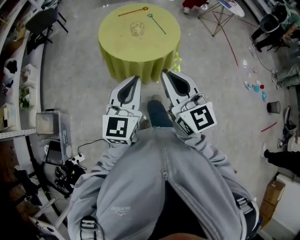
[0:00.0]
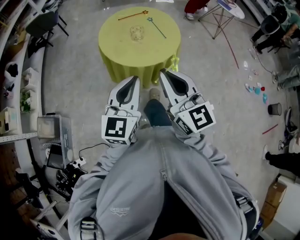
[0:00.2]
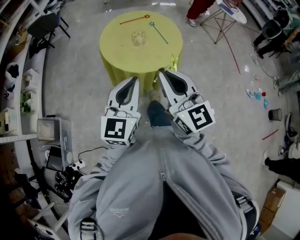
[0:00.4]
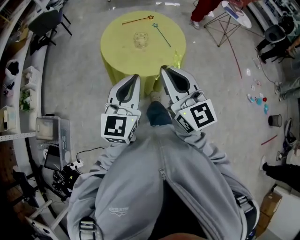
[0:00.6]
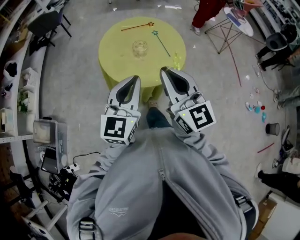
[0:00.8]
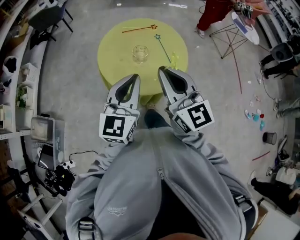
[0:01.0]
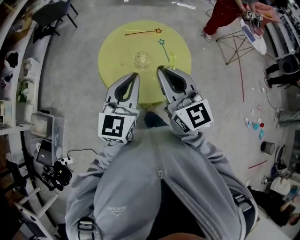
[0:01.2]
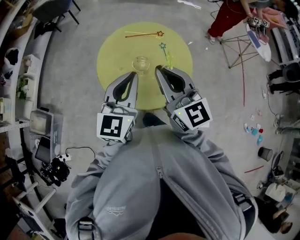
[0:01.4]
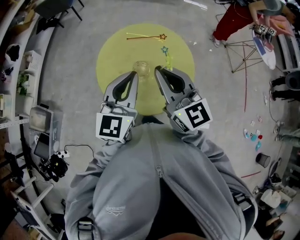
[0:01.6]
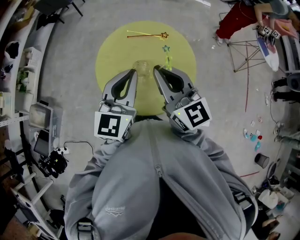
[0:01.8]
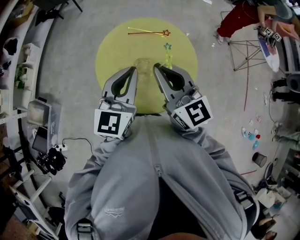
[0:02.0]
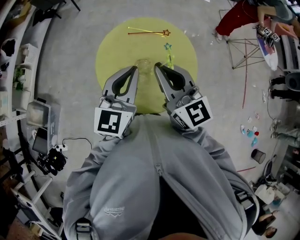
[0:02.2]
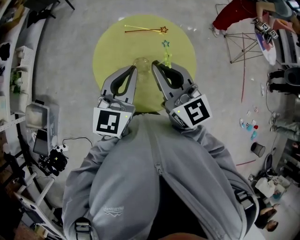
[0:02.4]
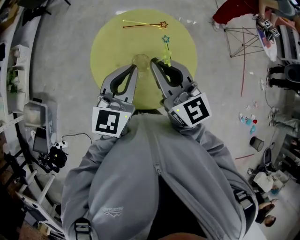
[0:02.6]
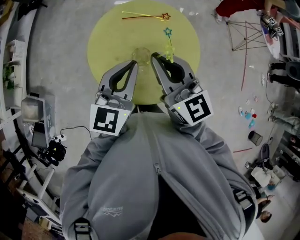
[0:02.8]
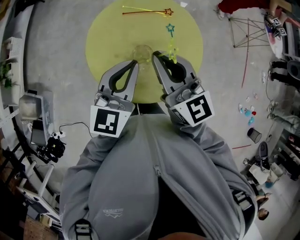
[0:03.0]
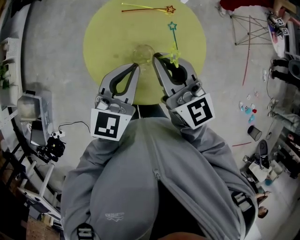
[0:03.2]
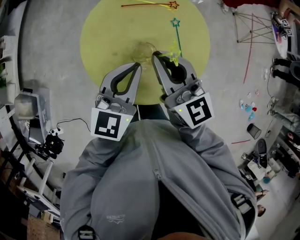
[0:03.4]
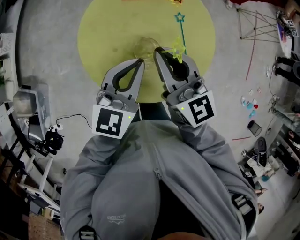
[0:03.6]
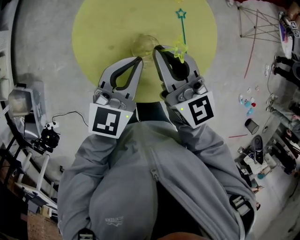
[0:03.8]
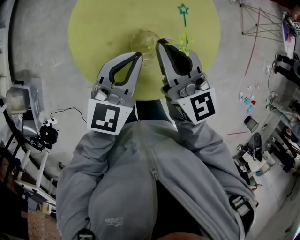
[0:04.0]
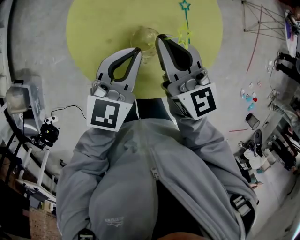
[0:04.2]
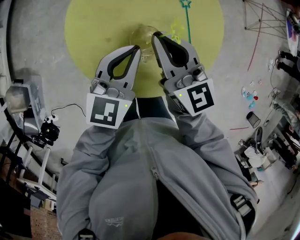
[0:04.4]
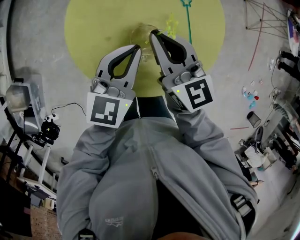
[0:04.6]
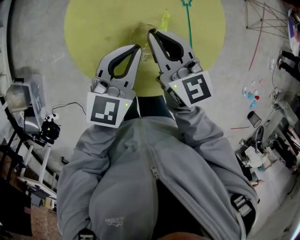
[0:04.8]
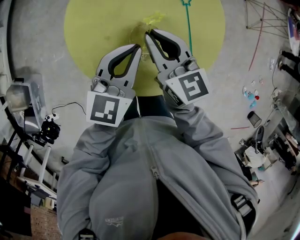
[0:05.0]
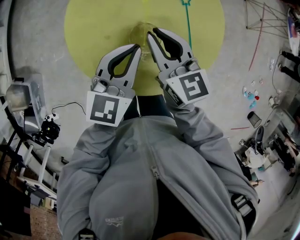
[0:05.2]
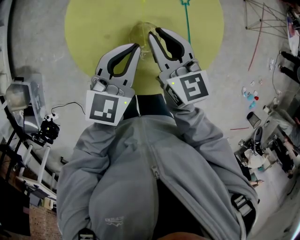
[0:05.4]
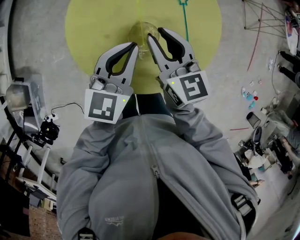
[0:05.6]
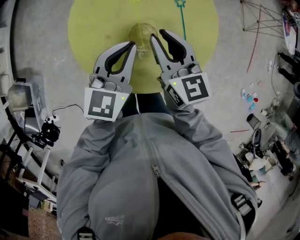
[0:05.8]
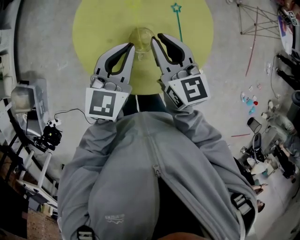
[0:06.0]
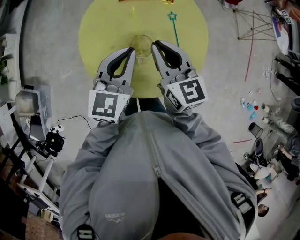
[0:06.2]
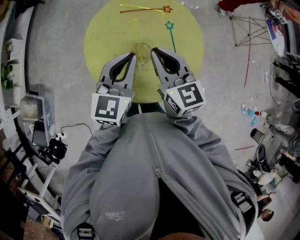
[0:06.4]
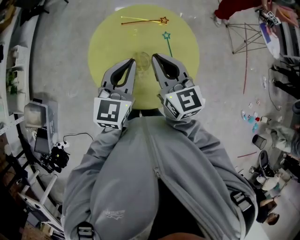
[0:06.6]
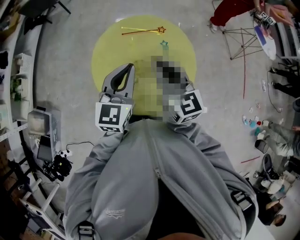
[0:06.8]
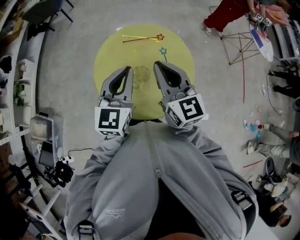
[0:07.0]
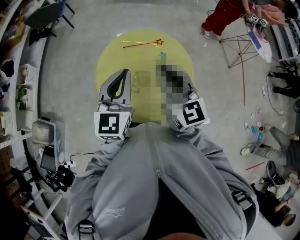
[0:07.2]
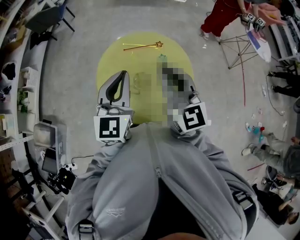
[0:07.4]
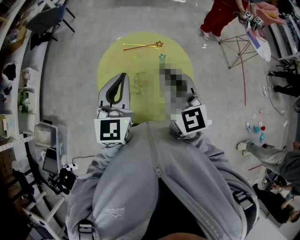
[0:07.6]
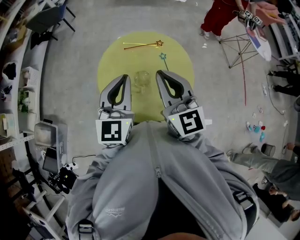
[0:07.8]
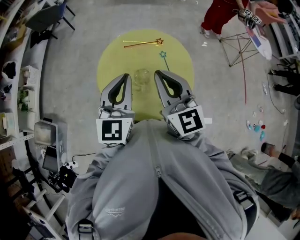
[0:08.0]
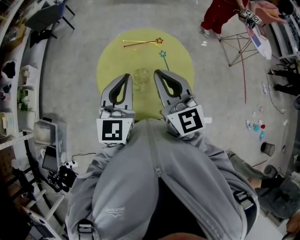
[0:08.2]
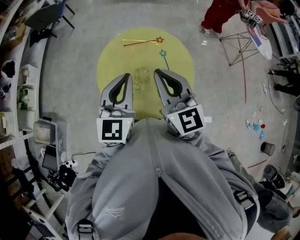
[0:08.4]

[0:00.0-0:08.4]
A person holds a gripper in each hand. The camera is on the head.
0:00.0 to 0:01.4: The pair of grippers is taken forward, approximately 40 cm.
0:01.4 to 0:02.8: Both grippers travel together forward and downward, approximately 15 cm.
0:02.8 to 0:04.2: The grippers both shift downward by approximately 20 cm.
0:04.2 to 0:05.6: The right gripper ends up about 5 cm from where it was.
0:05.6 to 0:07.0: Both grippers move upward, about 25 cm.
0:07.0 to 0:08.4: The right gripper moves some 5 cm. The left gripper shifts by roughly 5 cm.

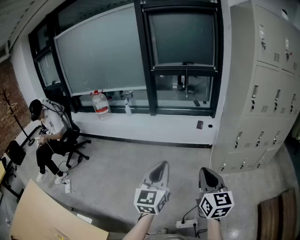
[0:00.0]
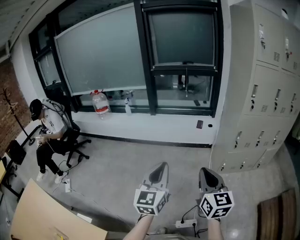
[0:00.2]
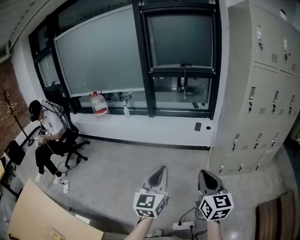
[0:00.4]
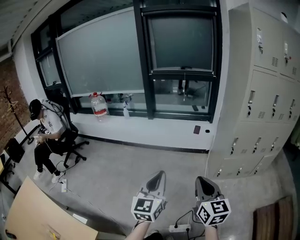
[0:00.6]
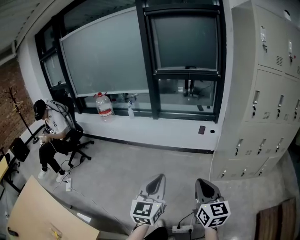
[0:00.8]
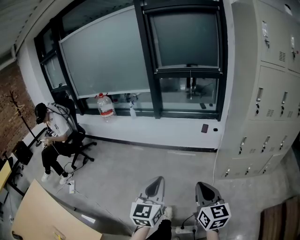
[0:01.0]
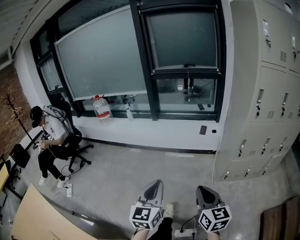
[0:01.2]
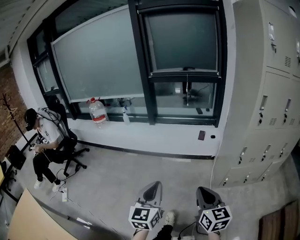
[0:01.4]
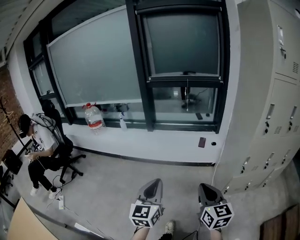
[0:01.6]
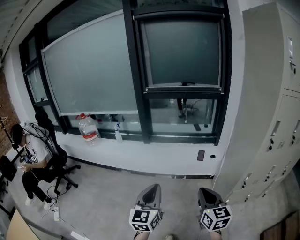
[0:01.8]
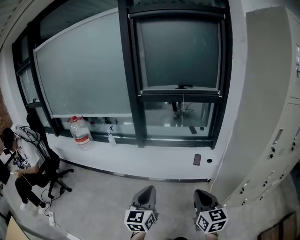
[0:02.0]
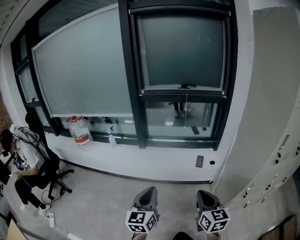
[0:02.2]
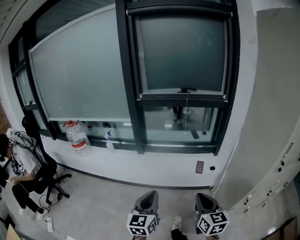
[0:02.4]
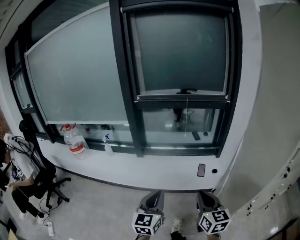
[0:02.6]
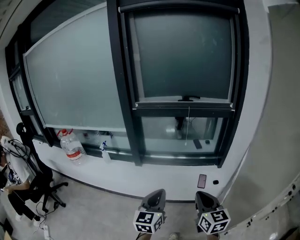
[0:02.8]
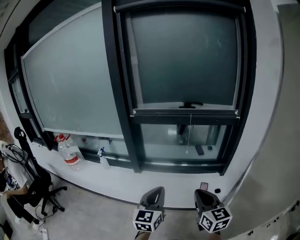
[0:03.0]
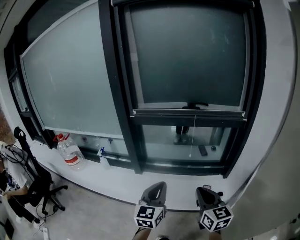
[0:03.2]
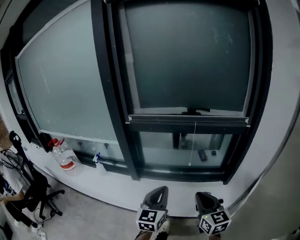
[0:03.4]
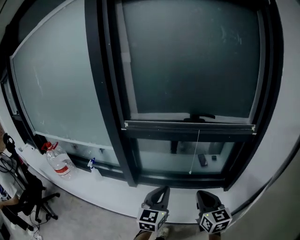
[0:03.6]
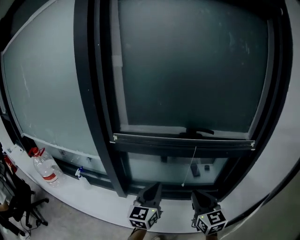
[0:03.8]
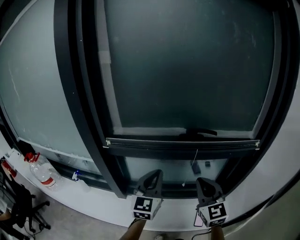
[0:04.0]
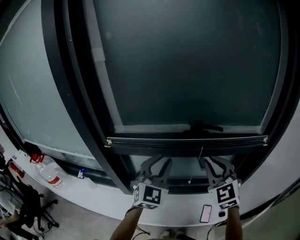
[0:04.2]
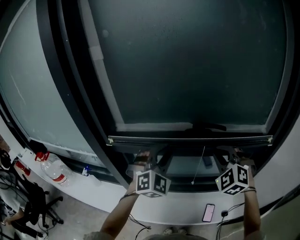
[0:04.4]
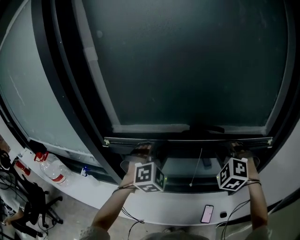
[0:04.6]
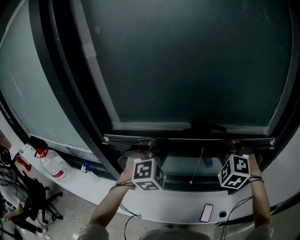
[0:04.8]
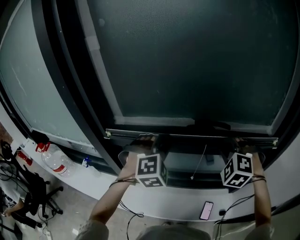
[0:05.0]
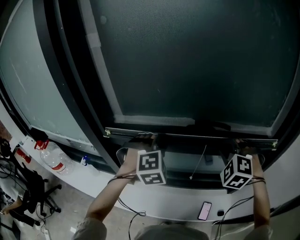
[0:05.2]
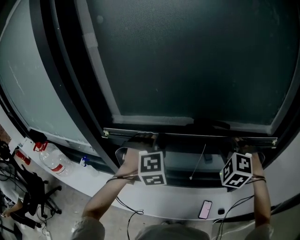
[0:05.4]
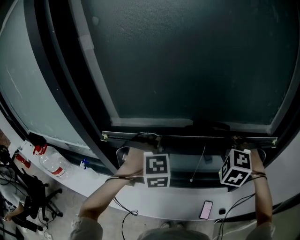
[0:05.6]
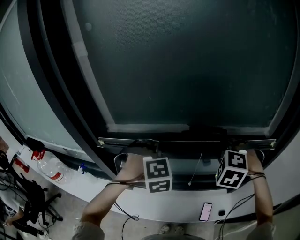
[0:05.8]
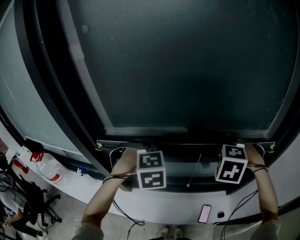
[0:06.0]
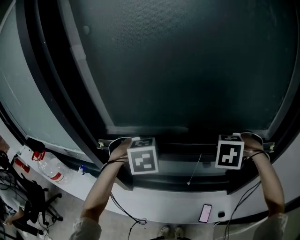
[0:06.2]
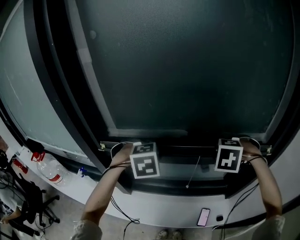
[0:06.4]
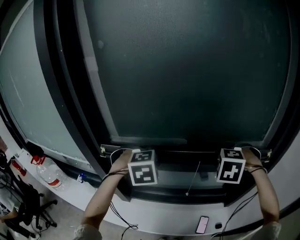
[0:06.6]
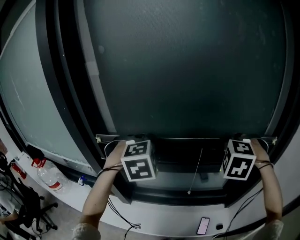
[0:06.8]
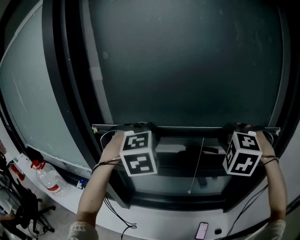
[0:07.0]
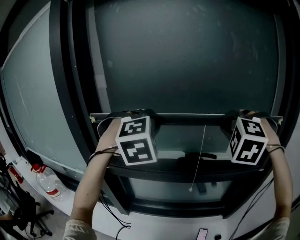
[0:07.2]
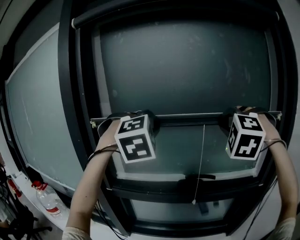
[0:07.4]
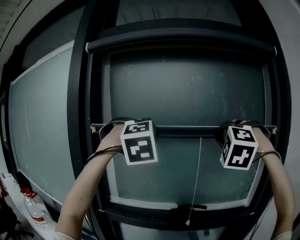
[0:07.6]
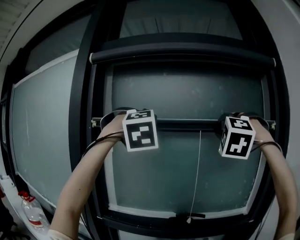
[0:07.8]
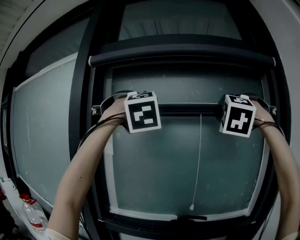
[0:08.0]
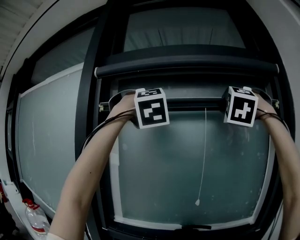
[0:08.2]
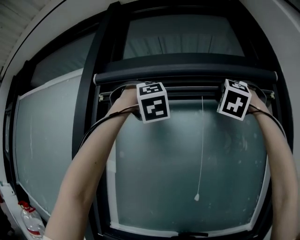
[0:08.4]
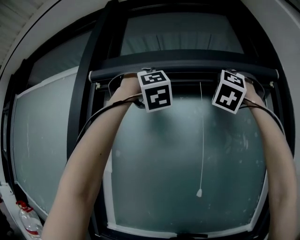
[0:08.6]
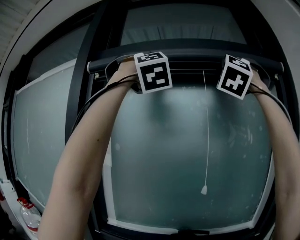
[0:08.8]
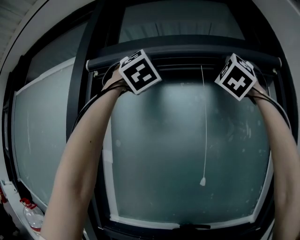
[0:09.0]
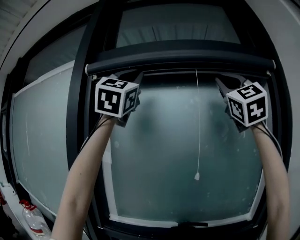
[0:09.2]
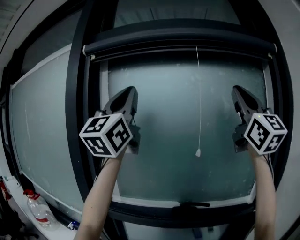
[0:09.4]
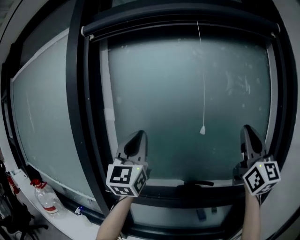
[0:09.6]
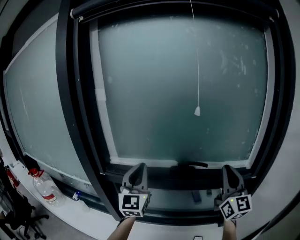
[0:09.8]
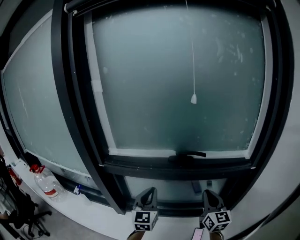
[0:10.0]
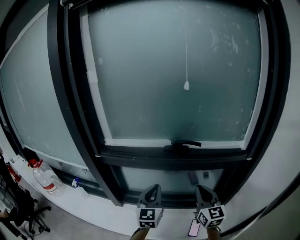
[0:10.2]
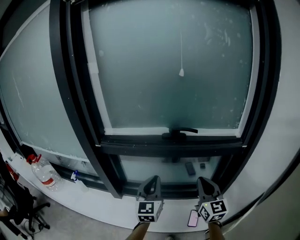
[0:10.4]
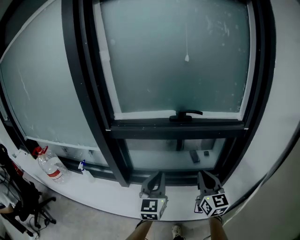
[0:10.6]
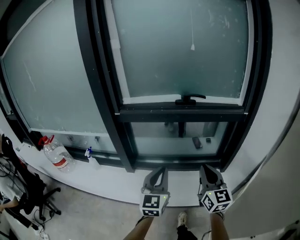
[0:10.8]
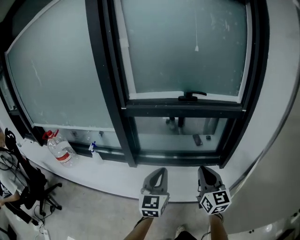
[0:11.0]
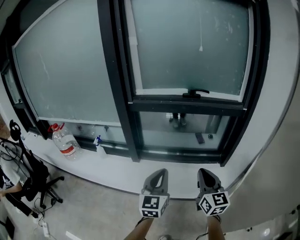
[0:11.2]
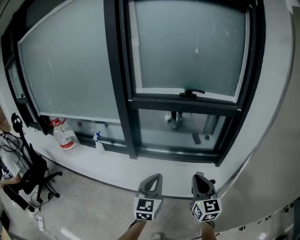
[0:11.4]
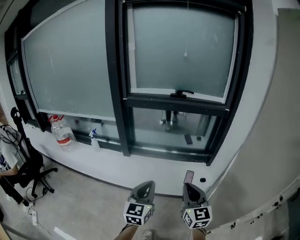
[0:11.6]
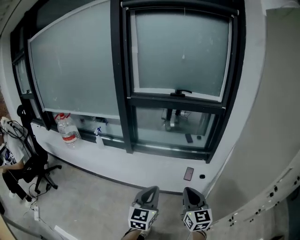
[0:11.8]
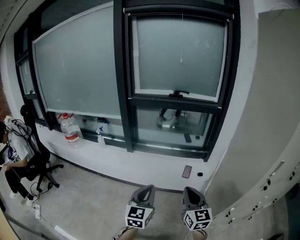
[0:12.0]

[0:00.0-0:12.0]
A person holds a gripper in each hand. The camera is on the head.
0:00.0 to 0:01.6: Both grippers travel together forward, roughly 20 cm.
0:01.6 to 0:03.0: The two grippers travel together, forward, some 50 cm.
0:03.0 to 0:04.4: Both grippers are carried forward, approximately 50 cm. The right gripper twists about 60 degrees counterclockwise, seen from behind; the left gripper rotates around the line of its fingers by roughly 60 degrees, clockwise from behind, and opens up.
0:04.4 to 0:06.0: The left gripper moves roughly 5 cm, and angles its fingers downward, by about 40 degrees. Meanwhile the right gripper tips its fingers downward by approximately 40 degrees.
0:06.0 to 0:07.6: Both grippers move upward, approximately 40 cm. The right gripper tilts its fingers approximately 50 degrees upward, while the left gripper tips its fingers upward by some 40 degrees.
0:07.6 to 0:09.0: Both grippers move upward, some 30 cm. The right gripper angles its fingers upward, by some 40 degrees; the left gripper angles its fingers upward, by roughly 40 degrees.
0:09.0 to 0:10.4: The grippers both shift downward by about 70 cm. The right gripper rolls clockwise, seen from behind, by about 70 degrees; the left gripper rolls counterclockwise, seen from behind, by approximately 70 degrees.
0:10.4 to 0:12.0: The two grippers travel together, backward, roughly 60 cm.

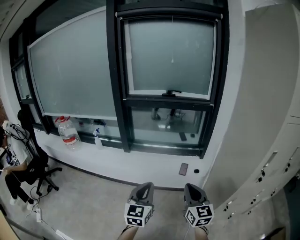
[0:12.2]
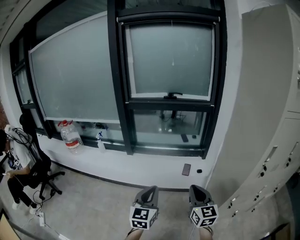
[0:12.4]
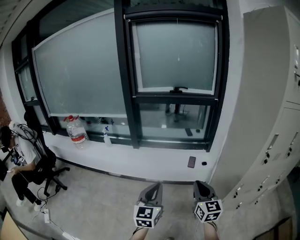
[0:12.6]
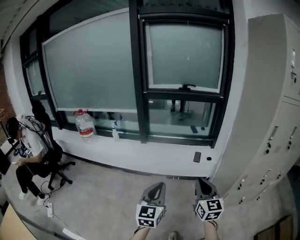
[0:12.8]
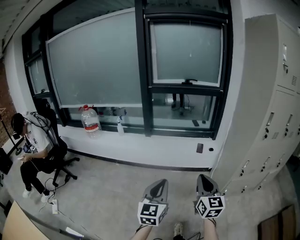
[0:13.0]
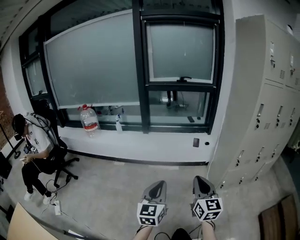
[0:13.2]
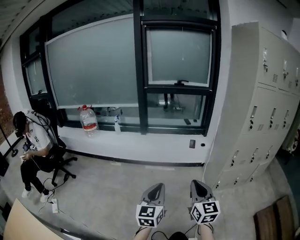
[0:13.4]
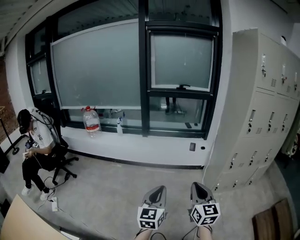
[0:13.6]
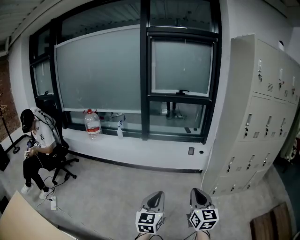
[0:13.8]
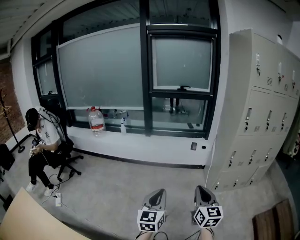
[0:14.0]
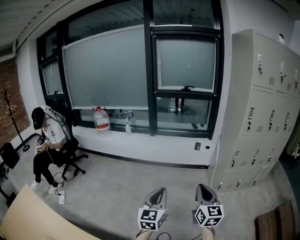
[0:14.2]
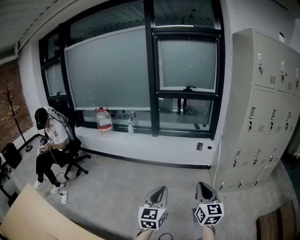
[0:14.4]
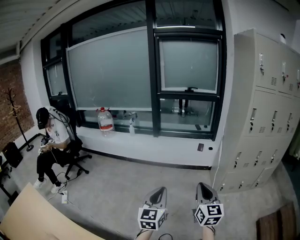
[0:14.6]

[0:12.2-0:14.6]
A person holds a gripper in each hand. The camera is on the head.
0:12.2 to 0:13.4: The two grippers travel together, backward, about 40 cm.
0:13.4 to 0:14.6: Both grippers travel together backward, some 10 cm.

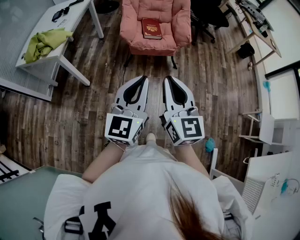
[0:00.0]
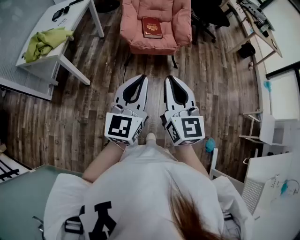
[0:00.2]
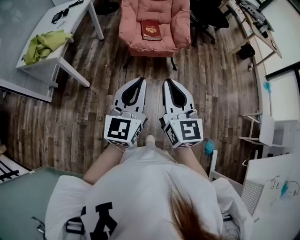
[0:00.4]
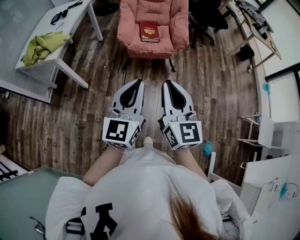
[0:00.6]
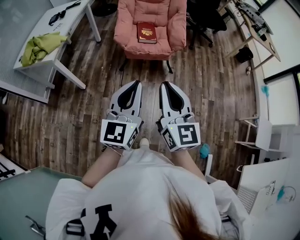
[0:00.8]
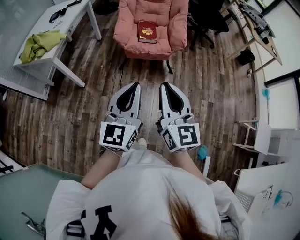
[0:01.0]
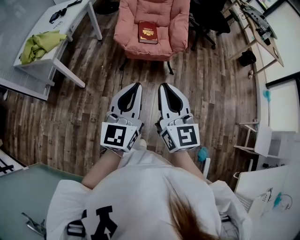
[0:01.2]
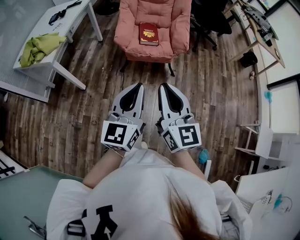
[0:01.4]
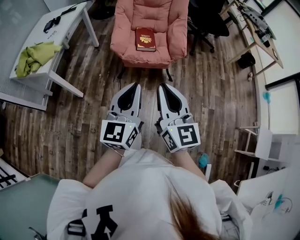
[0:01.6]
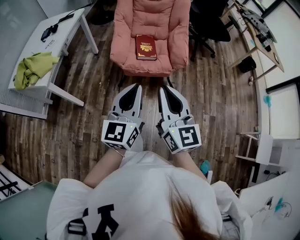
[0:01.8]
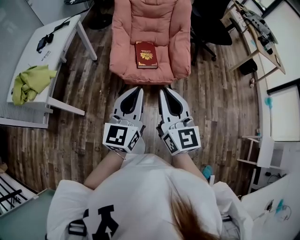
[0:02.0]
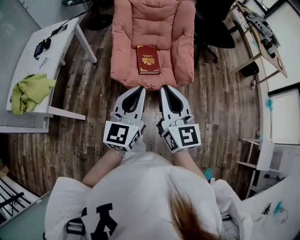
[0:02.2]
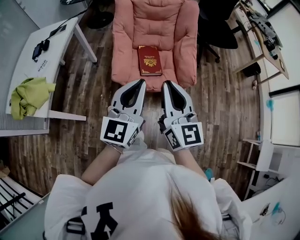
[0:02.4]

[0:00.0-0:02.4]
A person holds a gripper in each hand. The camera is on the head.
0:00.0 to 0:01.2: The grippers both shift to the right by roughly 5 cm.
0:01.2 to 0:02.4: Both grippers move forward, about 35 cm.
